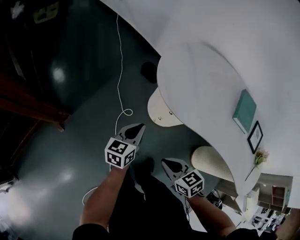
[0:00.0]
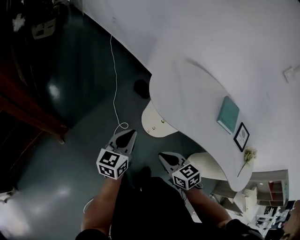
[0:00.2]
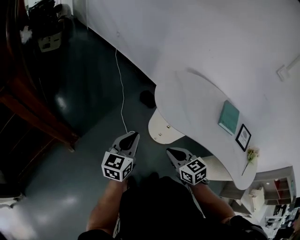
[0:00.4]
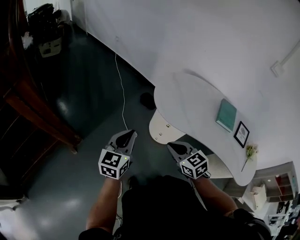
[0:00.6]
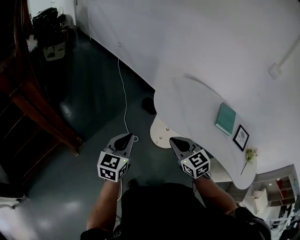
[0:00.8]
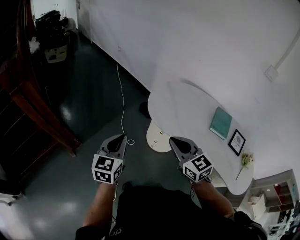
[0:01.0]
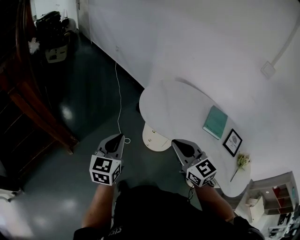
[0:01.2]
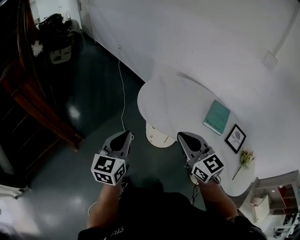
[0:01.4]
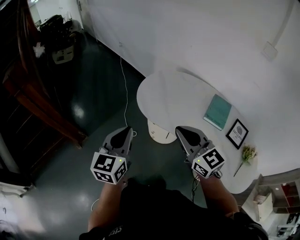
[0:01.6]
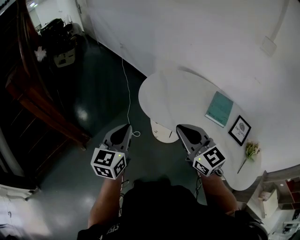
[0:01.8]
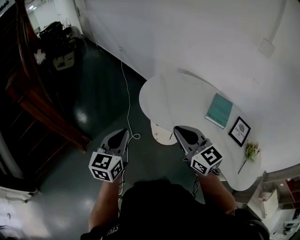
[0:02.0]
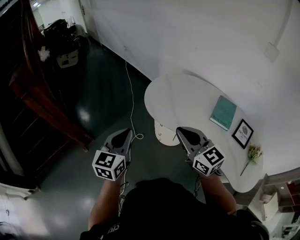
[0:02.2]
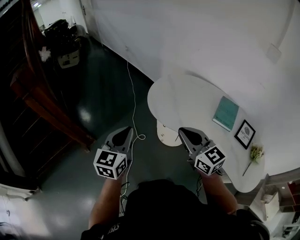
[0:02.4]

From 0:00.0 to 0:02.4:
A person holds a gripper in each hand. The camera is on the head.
From 0:00.0 to 0:01.2: Both grippers travel together upward, about 30 cm. The right gripper swivels some 40 degrees. Meanwhile the left gripper turns by roughly 30 degrees.

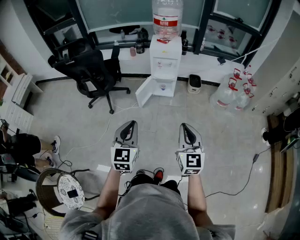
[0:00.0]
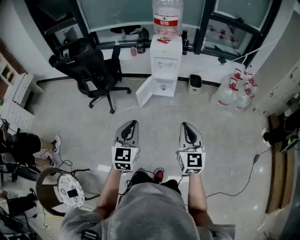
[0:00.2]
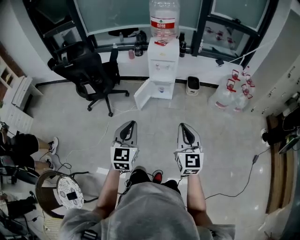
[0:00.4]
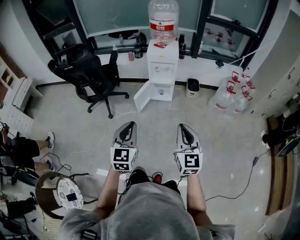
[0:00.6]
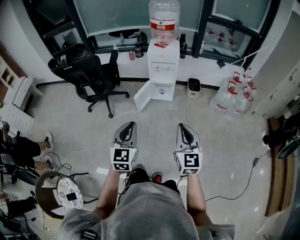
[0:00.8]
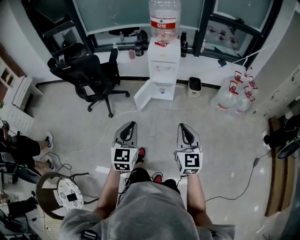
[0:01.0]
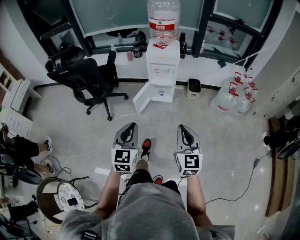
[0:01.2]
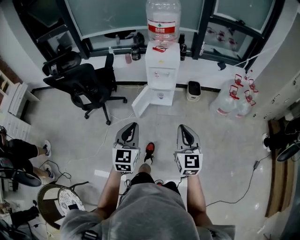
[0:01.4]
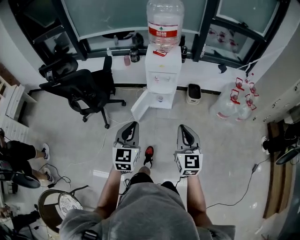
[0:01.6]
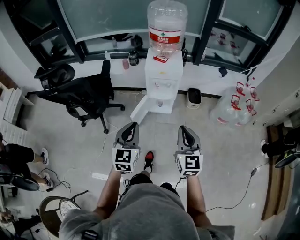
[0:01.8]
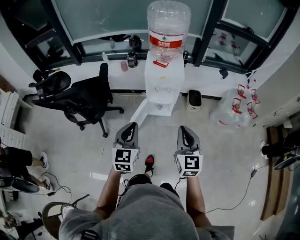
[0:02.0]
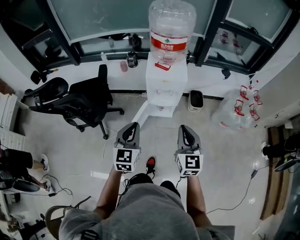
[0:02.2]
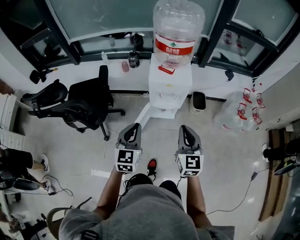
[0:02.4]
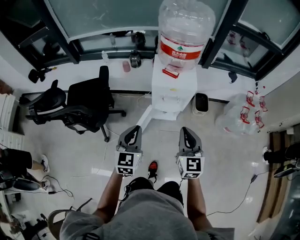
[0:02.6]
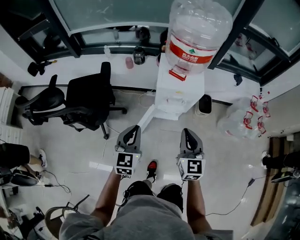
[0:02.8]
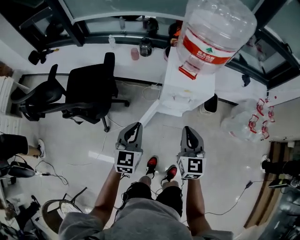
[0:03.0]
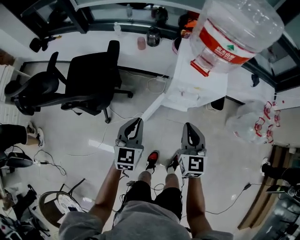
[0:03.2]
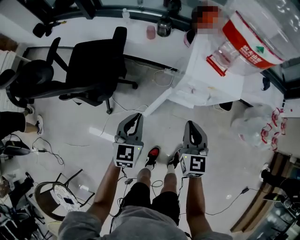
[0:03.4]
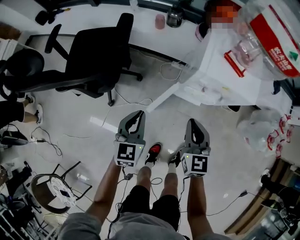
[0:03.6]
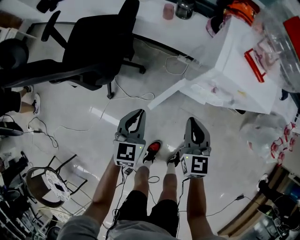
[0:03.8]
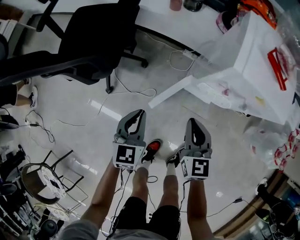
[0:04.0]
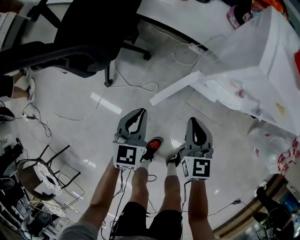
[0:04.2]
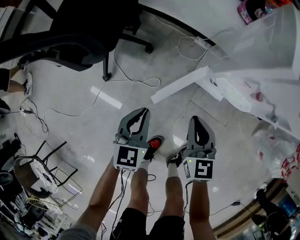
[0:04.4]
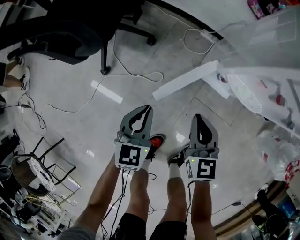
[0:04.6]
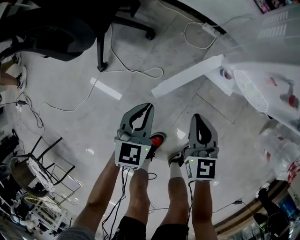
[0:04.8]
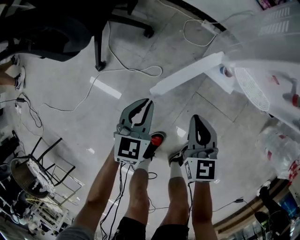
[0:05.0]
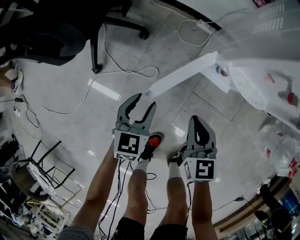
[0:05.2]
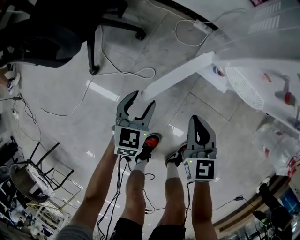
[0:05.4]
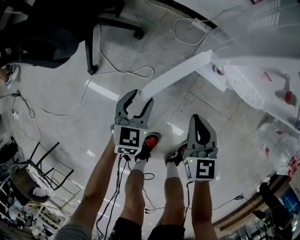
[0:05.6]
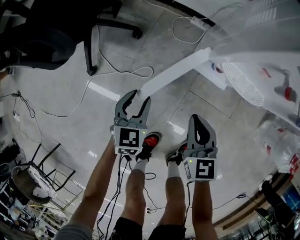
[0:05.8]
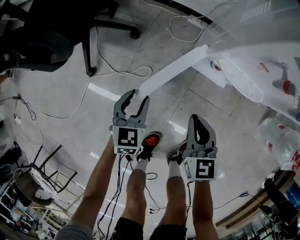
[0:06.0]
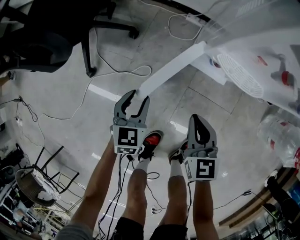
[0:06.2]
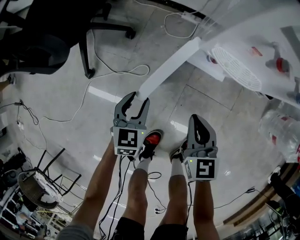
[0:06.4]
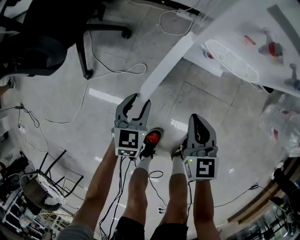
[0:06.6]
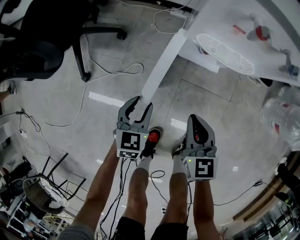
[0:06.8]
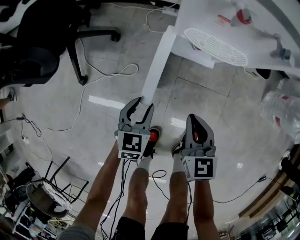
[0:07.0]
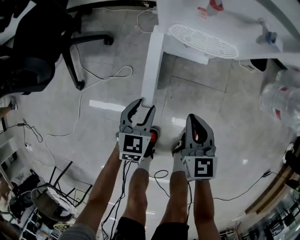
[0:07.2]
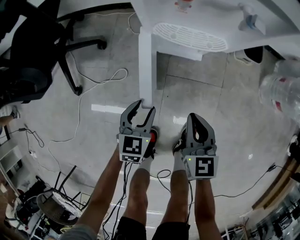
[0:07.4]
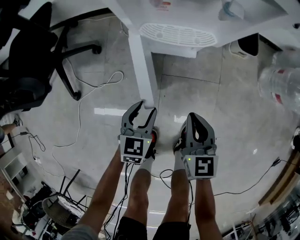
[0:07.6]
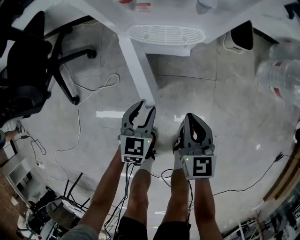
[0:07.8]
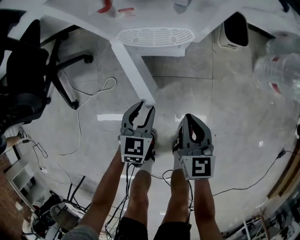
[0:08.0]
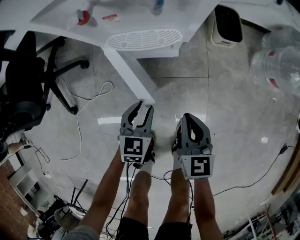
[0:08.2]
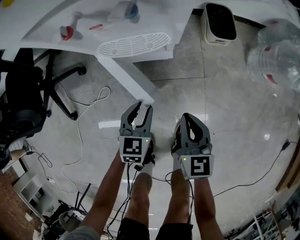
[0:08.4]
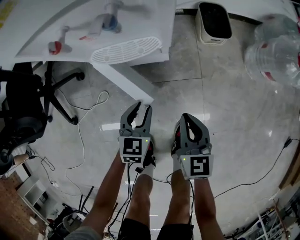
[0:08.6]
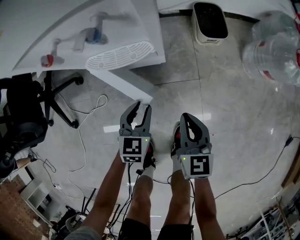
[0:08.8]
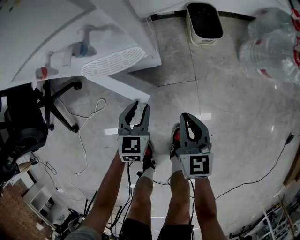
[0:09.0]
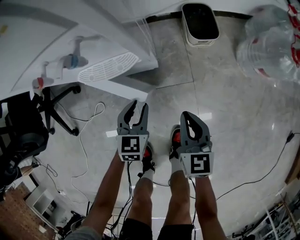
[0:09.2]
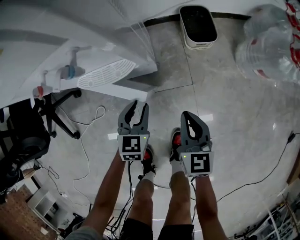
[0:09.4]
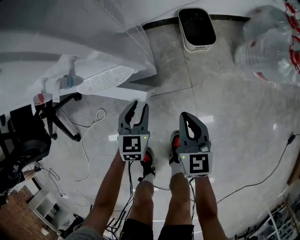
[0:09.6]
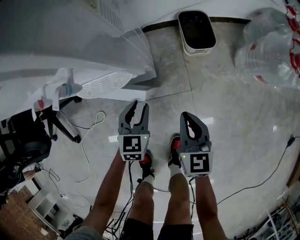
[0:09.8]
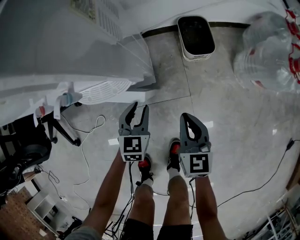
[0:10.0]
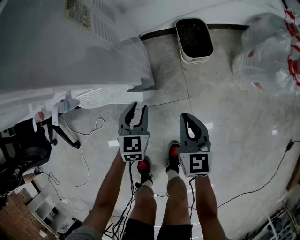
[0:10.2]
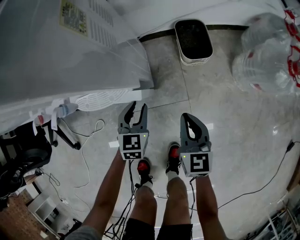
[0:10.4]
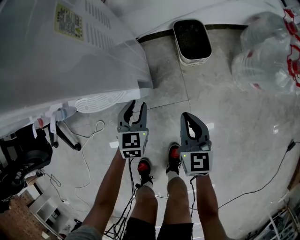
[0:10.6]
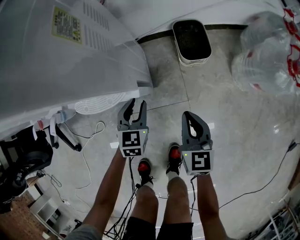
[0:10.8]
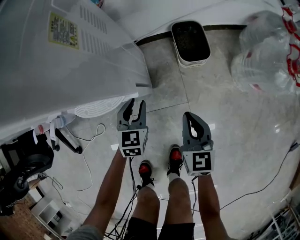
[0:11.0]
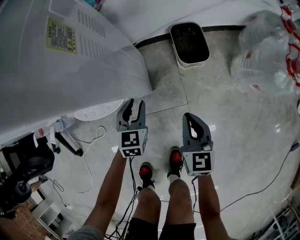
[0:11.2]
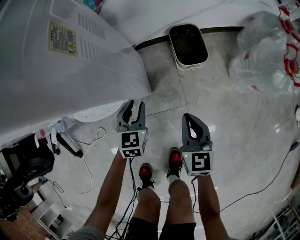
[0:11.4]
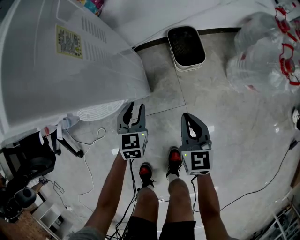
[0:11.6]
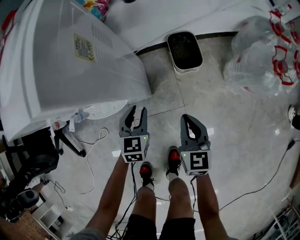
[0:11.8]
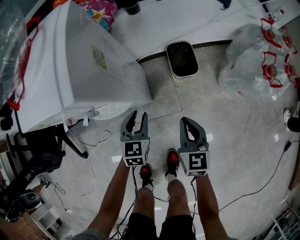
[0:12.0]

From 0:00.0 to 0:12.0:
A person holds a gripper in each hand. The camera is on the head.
From 0:00.0 to 0:01.6: The two grippers go approximately 20 cm forward.
From 0:01.6 to 0:03.0: Both grippers travel together forward, roughly 35 cm.
From 0:03.0 to 0:04.4: Both grippers travel together downward, roughly 40 cm. The right gripper turns by approximately 30 degrees; the left gripper rotates about 20 degrees.
From 0:04.4 to 0:06.0: The two grippers go about 15 cm downward. The left gripper opens.
From 0:06.0 to 0:07.6: The left gripper shifts some 20 cm to the right, and swivels about 20 degrees, while the right gripper shifts roughly 20 cm to the right and backward, and turns by about 20 degrees.
From 0:07.6 to 0:09.0: The right gripper travels to the right by some 15 cm. Meanwhile the left gripper goes about 15 cm to the right and forward.
From 0:09.0 to 0:10.4: The left gripper goes approximately 10 cm forward. Meanwhile the right gripper is displaced forward and to the right by approximately 10 cm.
From 0:10.4 to 0:12.0: Both grippers move upward, some 10 cm.

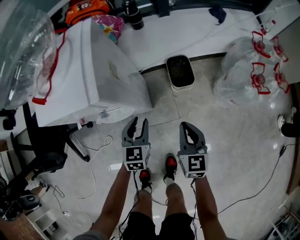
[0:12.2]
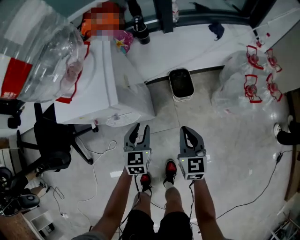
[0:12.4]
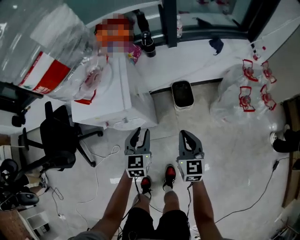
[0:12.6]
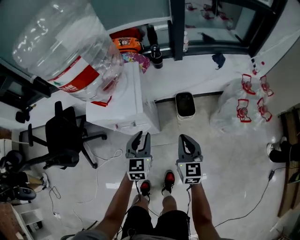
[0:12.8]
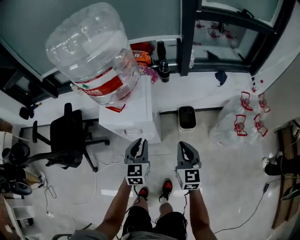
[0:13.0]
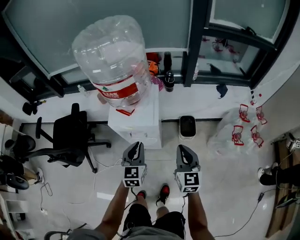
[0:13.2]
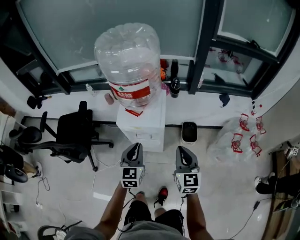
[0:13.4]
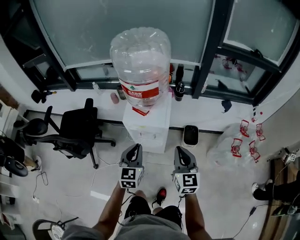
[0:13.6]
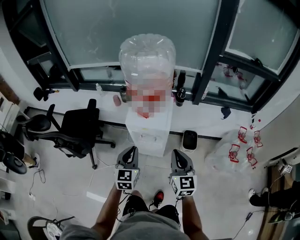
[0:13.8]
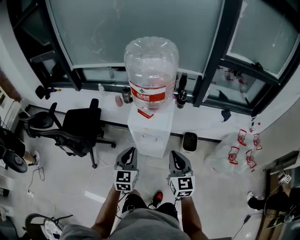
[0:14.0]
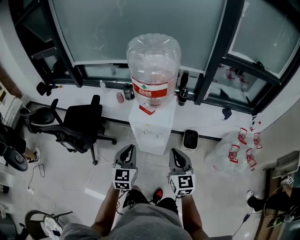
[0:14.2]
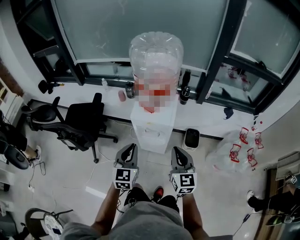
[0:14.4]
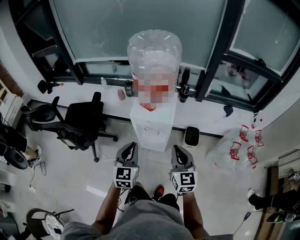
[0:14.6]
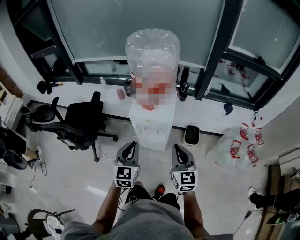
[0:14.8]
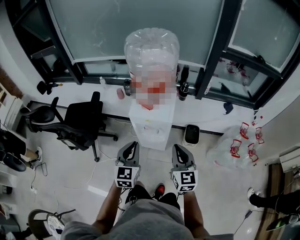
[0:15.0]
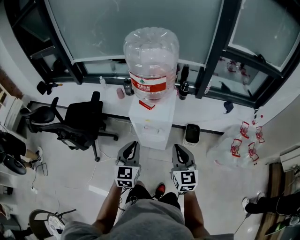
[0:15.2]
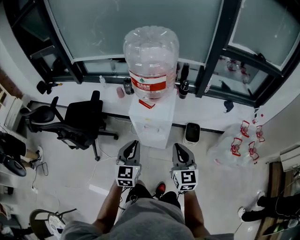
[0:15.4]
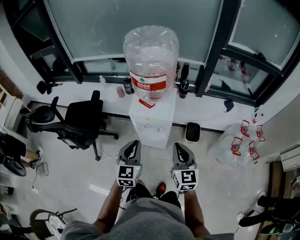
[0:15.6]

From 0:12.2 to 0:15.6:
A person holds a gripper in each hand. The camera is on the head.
From 0:12.2 to 0:13.8: The right gripper is displaced upward by roughly 40 cm, and rotates some 30 degrees. Meanwhile the left gripper goes some 40 cm upward and to the left, turns by approximately 20 degrees, and closes its fingers.
From 0:13.8 to 0:15.6: There are only small adjustments of the grippers.

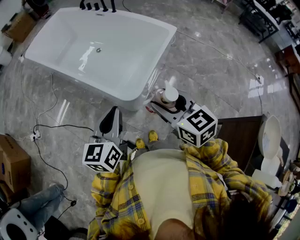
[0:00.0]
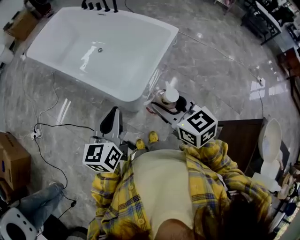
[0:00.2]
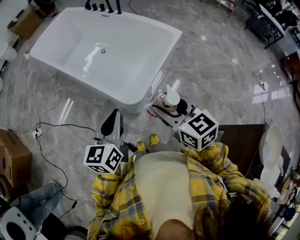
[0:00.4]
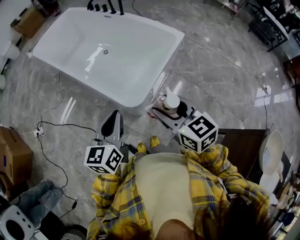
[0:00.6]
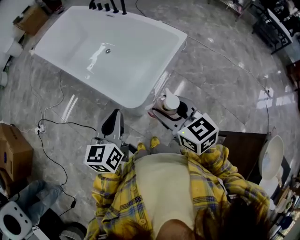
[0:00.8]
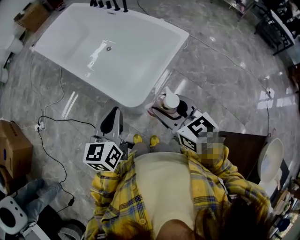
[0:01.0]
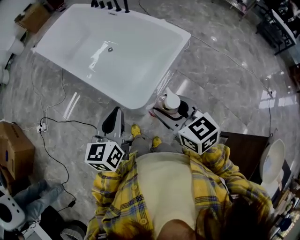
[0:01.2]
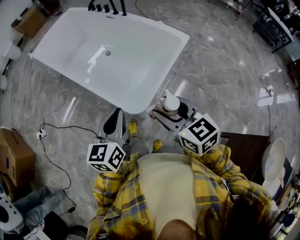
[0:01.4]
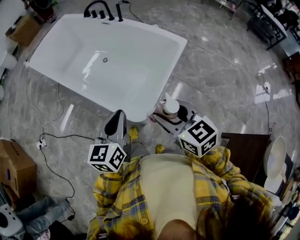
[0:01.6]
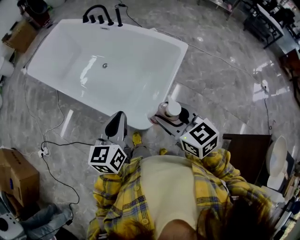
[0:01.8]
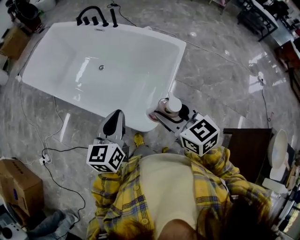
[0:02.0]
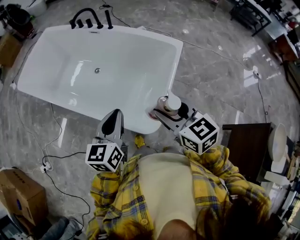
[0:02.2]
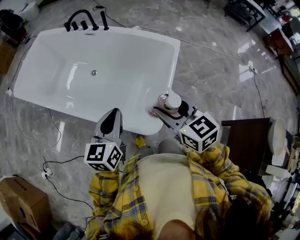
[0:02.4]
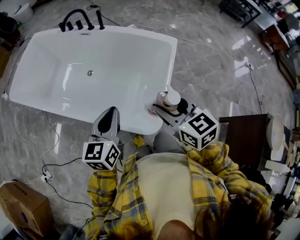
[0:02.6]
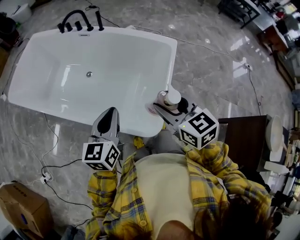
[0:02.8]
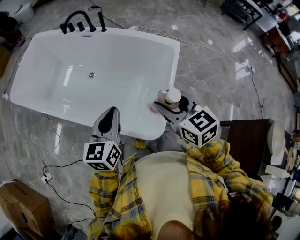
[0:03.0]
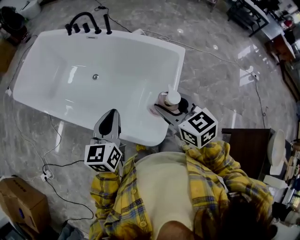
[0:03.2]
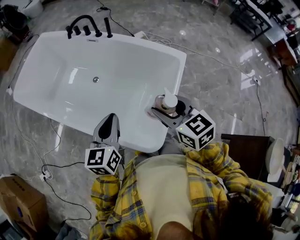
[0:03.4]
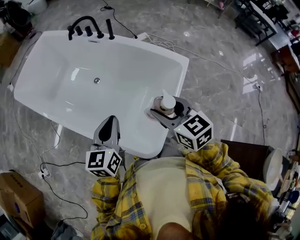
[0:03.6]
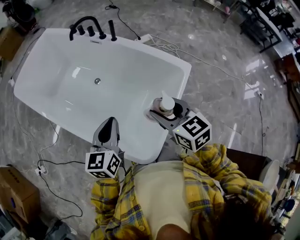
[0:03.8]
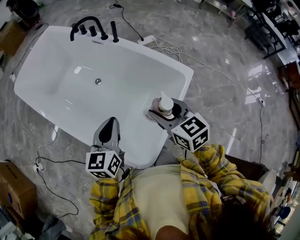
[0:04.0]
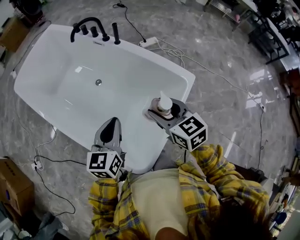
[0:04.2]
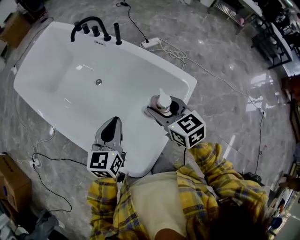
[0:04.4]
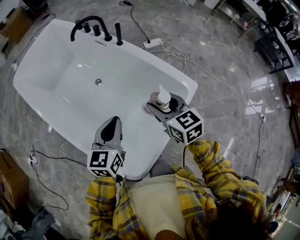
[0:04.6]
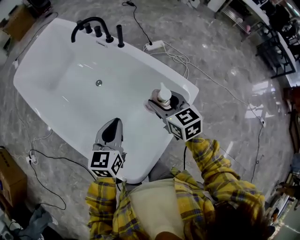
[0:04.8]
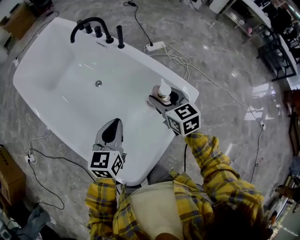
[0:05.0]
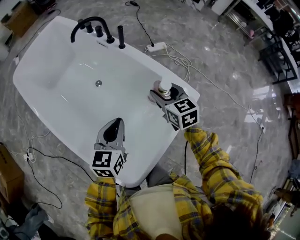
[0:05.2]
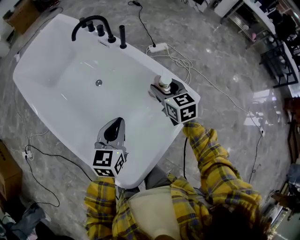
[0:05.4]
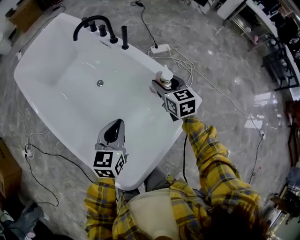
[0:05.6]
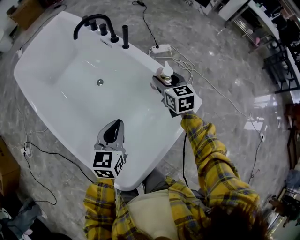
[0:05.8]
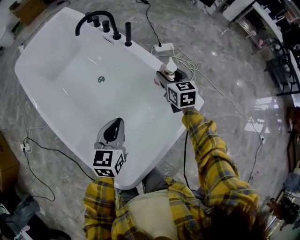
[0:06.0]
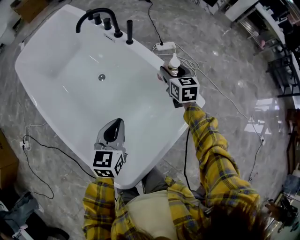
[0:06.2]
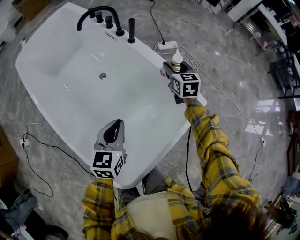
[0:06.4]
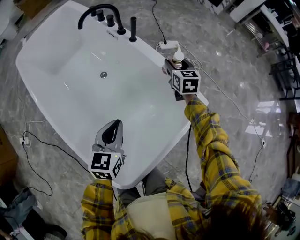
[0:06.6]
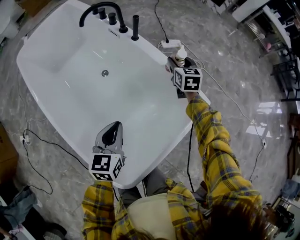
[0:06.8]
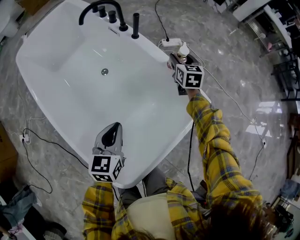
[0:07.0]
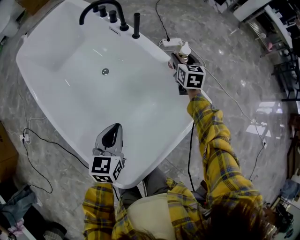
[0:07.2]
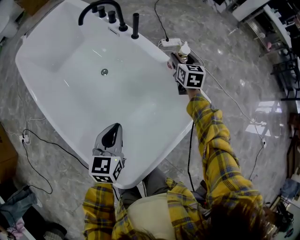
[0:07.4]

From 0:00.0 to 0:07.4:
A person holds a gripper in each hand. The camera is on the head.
From 0:00.0 to 0:01.4: The grippers both shift forward by approximately 5 cm.
From 0:01.4 to 0:03.0: The left gripper is displaced forward and to the left by some 25 cm; the right gripper goes some 20 cm forward, and turns by roughly 20 degrees.
From 0:03.0 to 0:04.4: The right gripper shifts some 20 cm forward. The left gripper is displaced forward and to the right by about 15 cm.
From 0:04.4 to 0:06.0: The left gripper shifts roughly 10 cm downward and forward. Meanwhile the right gripper travels forward and downward by roughly 25 cm.
From 0:06.0 to 0:07.4: The right gripper is displaced forward by roughly 10 cm.
